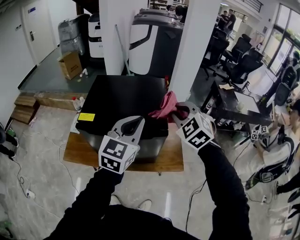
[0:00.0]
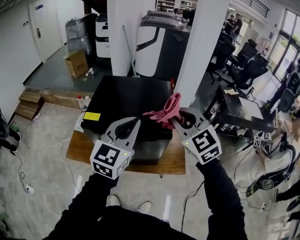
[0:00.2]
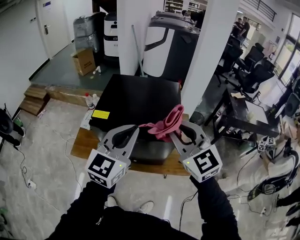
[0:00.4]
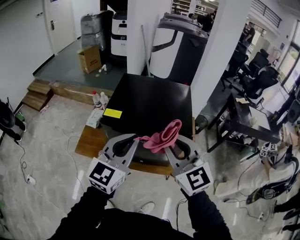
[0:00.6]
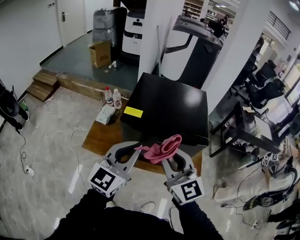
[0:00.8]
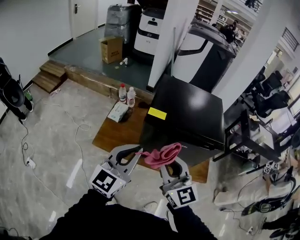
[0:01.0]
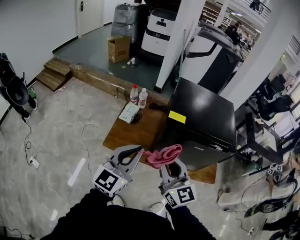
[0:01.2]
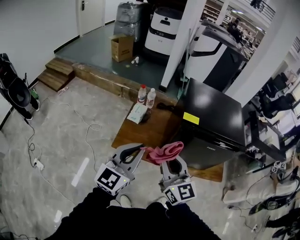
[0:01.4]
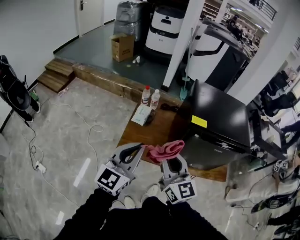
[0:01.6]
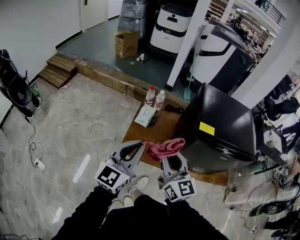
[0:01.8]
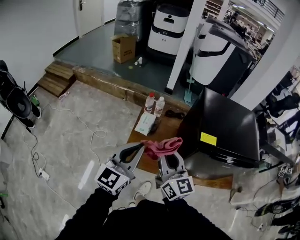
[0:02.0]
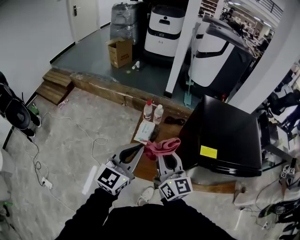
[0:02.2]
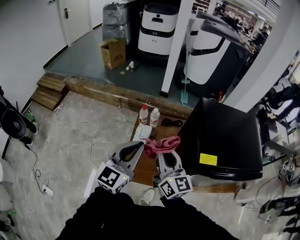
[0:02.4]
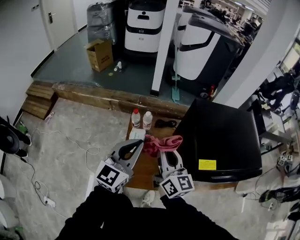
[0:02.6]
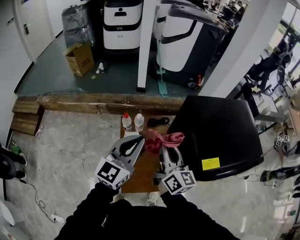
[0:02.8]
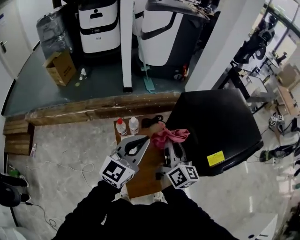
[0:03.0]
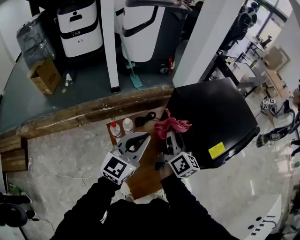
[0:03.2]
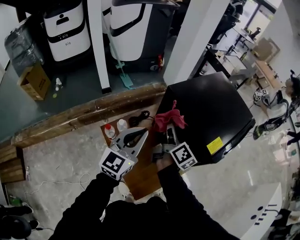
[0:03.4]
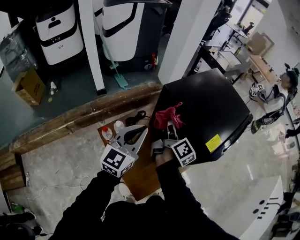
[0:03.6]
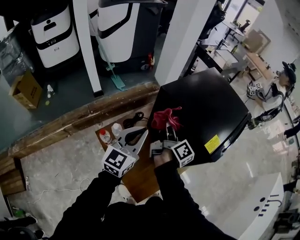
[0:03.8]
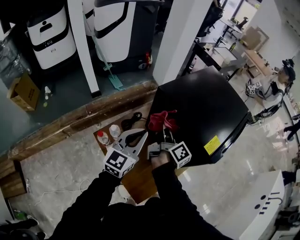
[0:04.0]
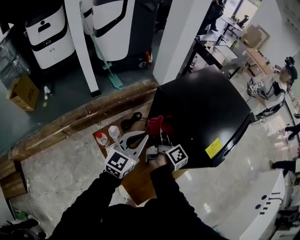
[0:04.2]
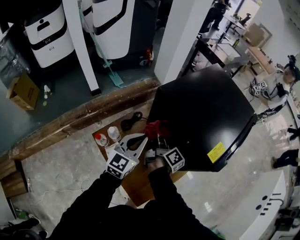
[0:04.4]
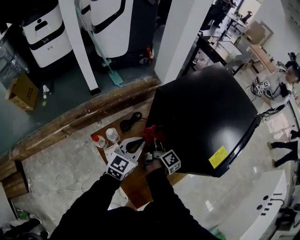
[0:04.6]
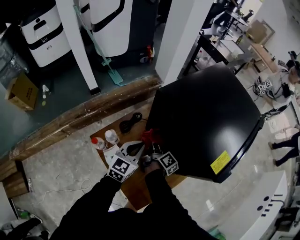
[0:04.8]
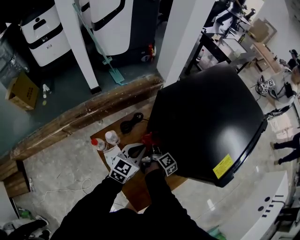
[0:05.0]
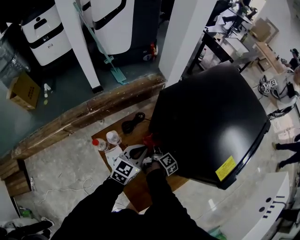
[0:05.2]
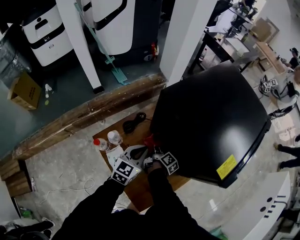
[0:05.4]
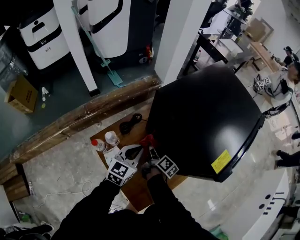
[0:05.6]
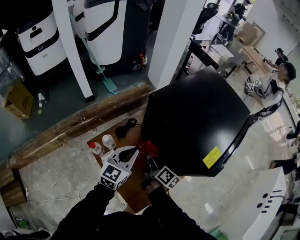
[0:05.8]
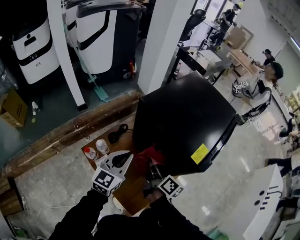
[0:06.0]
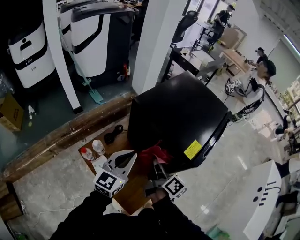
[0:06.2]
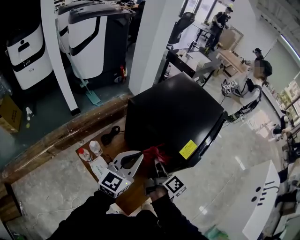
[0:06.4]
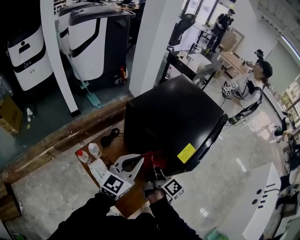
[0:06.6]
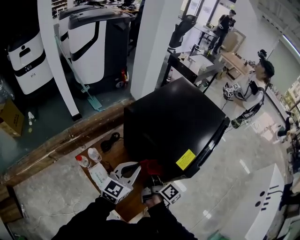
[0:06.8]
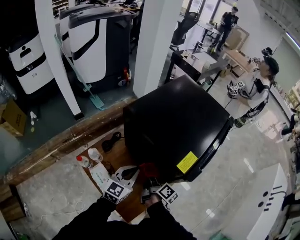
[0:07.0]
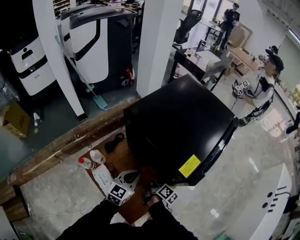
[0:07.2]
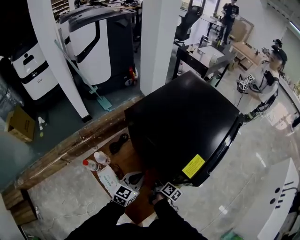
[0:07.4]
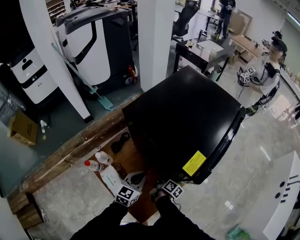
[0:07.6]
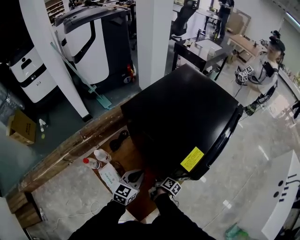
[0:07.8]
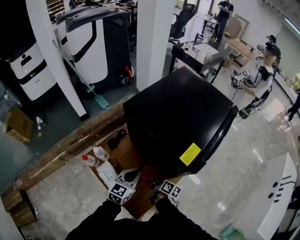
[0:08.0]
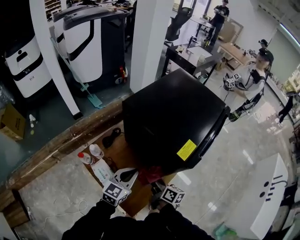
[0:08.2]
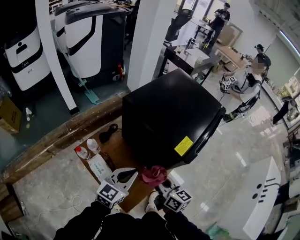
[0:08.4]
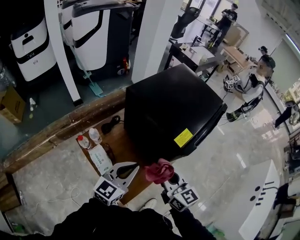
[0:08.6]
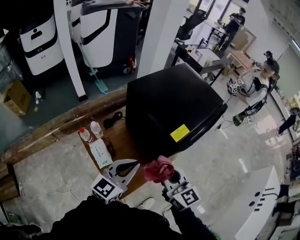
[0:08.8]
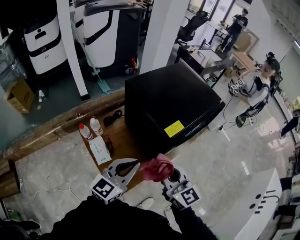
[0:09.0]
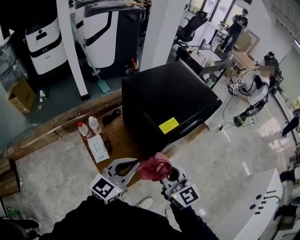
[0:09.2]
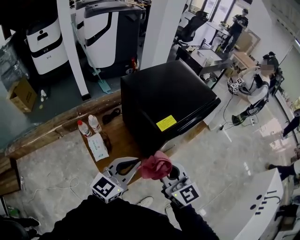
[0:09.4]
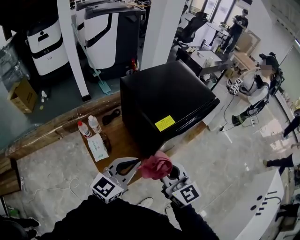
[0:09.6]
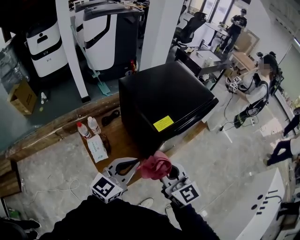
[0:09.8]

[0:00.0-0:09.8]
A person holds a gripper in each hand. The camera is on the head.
0:00.0 to 0:01.4: Both grippers are carried to the left, approximately 50 cm. The right gripper points its fingers some 30 degrees further upward.
0:01.4 to 0:02.8: Both grippers travel together forward, about 35 cm. The left gripper swivels approximately 20 degrees; the right gripper swivels some 40 degrees.
0:02.8 to 0:04.2: The left gripper shifts by about 15 cm, and changes its angle by roughly 30 degrees. Meanwhile the right gripper ends up about 20 cm from where it was, and turns by approximately 60 degrees.
0:04.2 to 0:05.6: Both grippers move downward, about 15 cm. The right gripper rotates some 20 degrees.
0:05.6 to 0:07.0: The left gripper is displaced to the right by some 10 cm, and moves roughly 20 cm upward and comes back, while the right gripper travels to the right, upward and backward by roughly 20 cm.
0:07.0 to 0:08.4: The right gripper is displaced upward and backward by approximately 15 cm, and rotates around the line of its fingers by about 40 degrees, counterclockwise from behind; the left gripper is displaced backward and upward by some 10 cm.
0:08.4 to 0:09.8: The left gripper moves to the right, upward and backward, roughly 20 cm. The right gripper goes approximately 20 cm upward, to the right and backward, and swivels some 30 degrees.

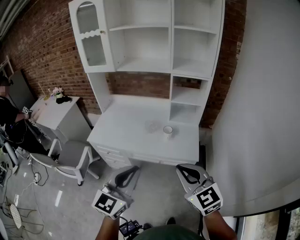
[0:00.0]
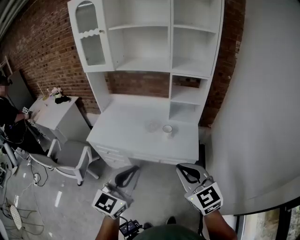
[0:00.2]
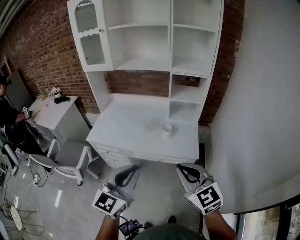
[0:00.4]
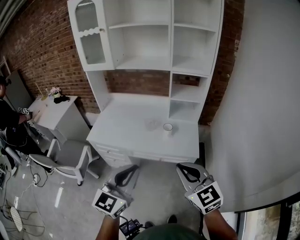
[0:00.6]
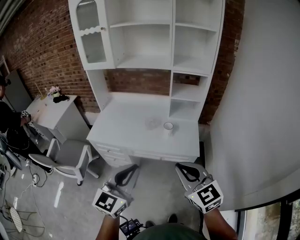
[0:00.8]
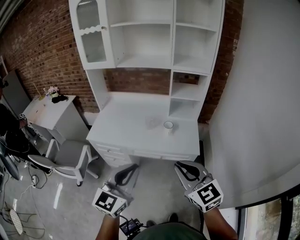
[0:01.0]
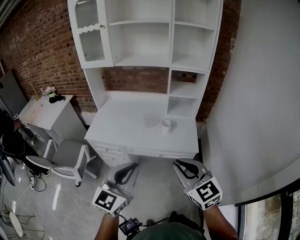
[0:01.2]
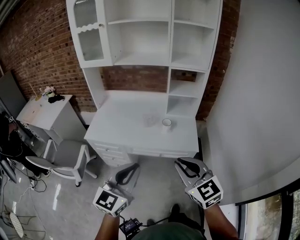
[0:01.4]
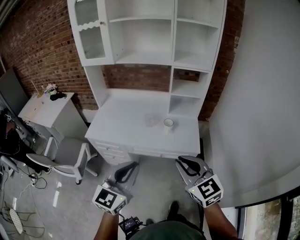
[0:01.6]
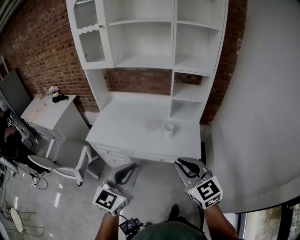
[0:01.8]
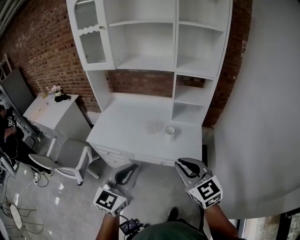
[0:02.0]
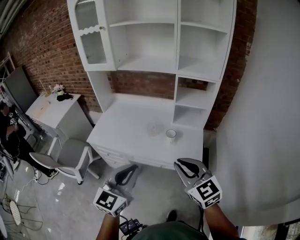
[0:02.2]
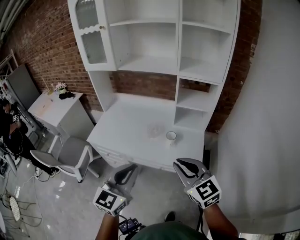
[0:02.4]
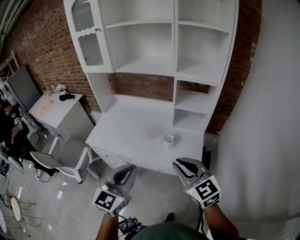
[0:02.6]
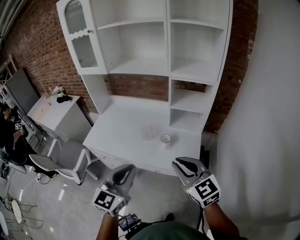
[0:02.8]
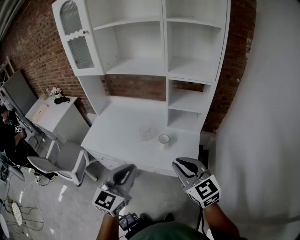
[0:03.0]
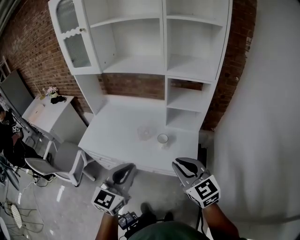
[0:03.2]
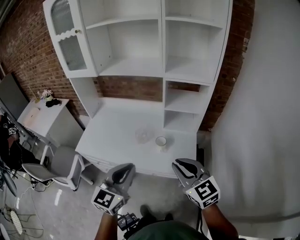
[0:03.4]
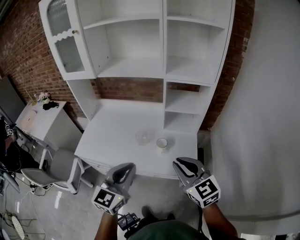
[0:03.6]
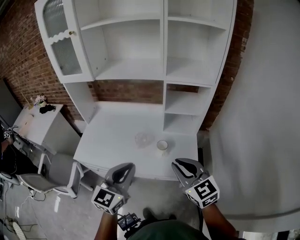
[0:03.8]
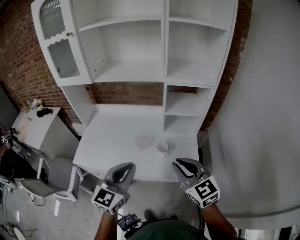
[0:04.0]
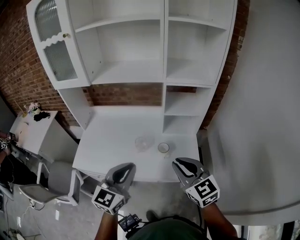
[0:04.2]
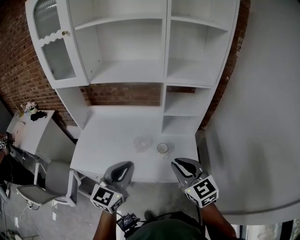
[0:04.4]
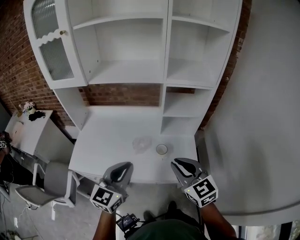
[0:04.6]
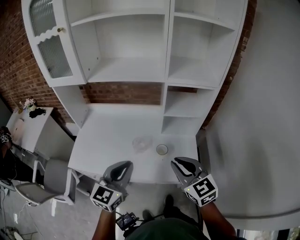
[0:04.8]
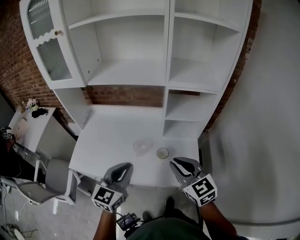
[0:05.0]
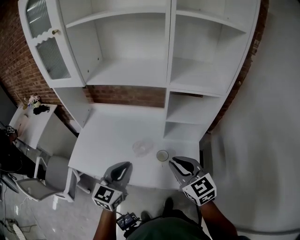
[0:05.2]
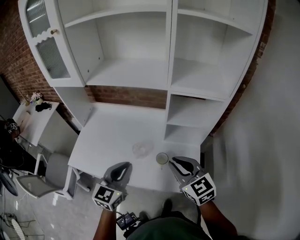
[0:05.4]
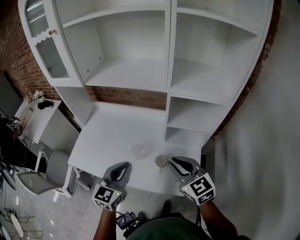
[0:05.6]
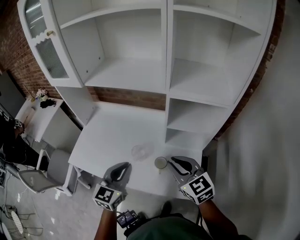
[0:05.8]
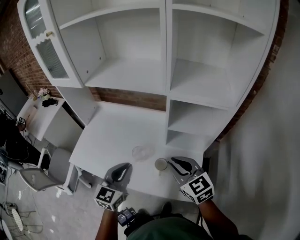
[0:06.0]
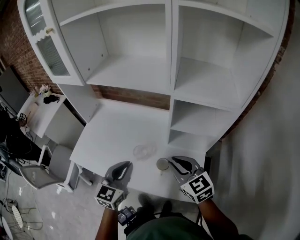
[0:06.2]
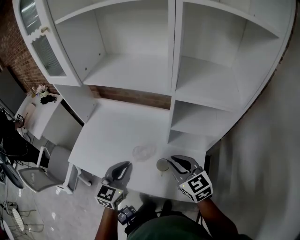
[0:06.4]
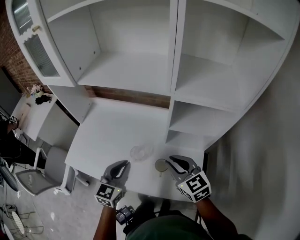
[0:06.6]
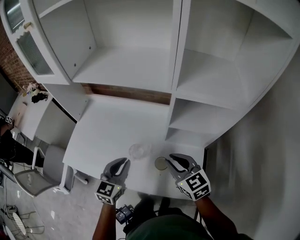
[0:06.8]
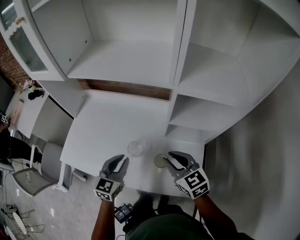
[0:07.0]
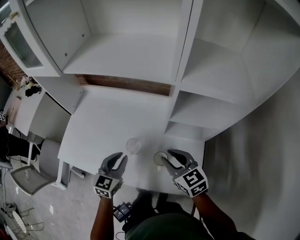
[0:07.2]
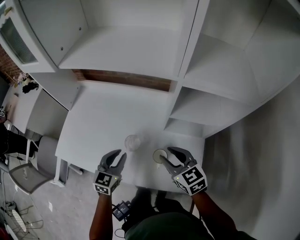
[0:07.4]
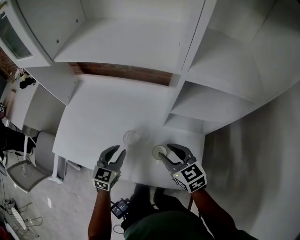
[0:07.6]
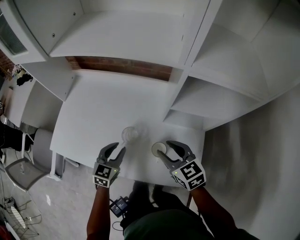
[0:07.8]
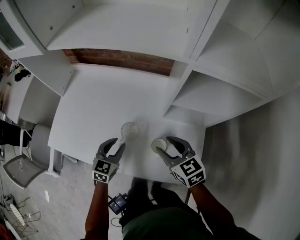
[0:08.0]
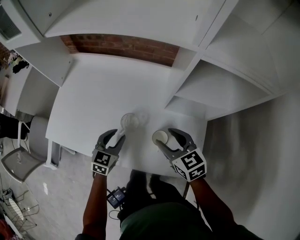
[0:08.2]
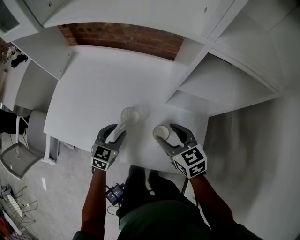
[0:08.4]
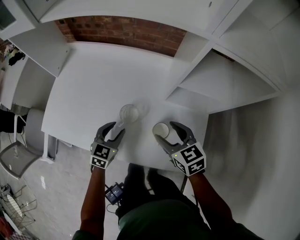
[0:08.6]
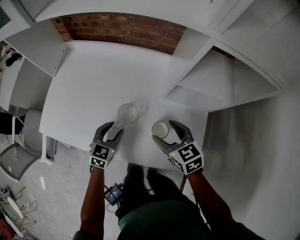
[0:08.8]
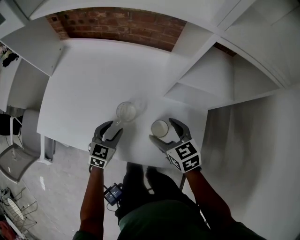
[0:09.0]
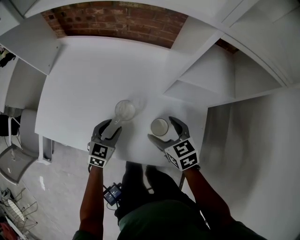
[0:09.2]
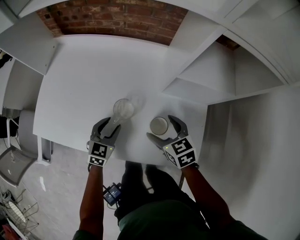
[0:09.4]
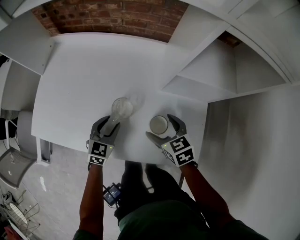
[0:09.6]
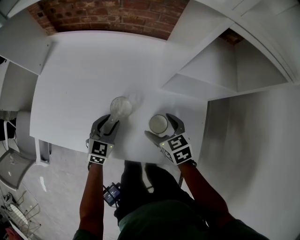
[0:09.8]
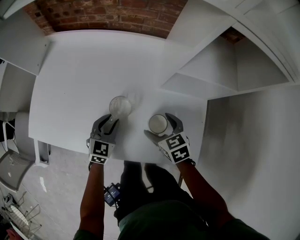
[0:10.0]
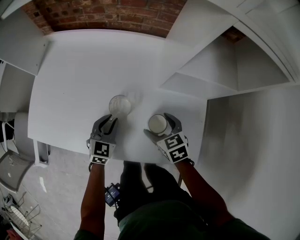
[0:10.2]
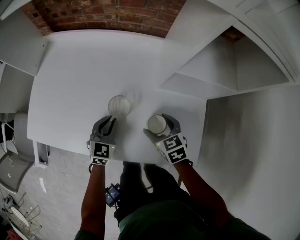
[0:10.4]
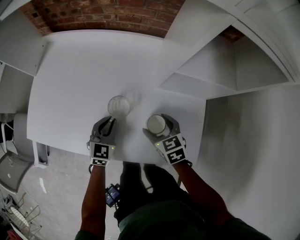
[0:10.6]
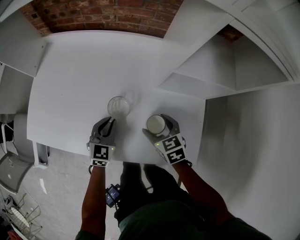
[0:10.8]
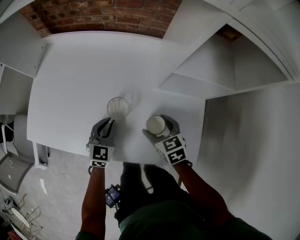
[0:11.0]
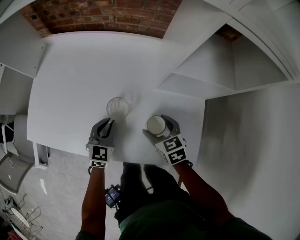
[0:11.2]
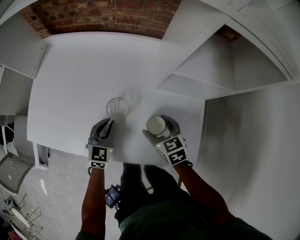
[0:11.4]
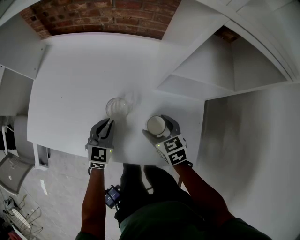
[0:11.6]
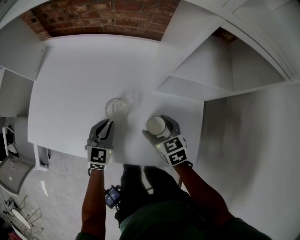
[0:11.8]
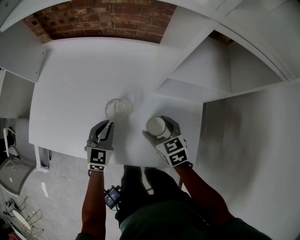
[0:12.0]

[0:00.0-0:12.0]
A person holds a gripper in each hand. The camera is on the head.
0:00.0 to 0:01.6: The left gripper heads to the left, covering roughly 5 cm.
0:01.6 to 0:03.0: The grippers both shift forward and to the right by some 20 cm.
0:03.0 to 0:04.4: Both grippers move forward and to the left, approximately 15 cm.
0:04.4 to 0:06.0: The left gripper moves forward, downward and to the right, approximately 15 cm. Meanwhile the right gripper heads forward and to the right, covering roughly 20 cm.
0:06.0 to 0:07.6: Both grippers move downward and forward, about 20 cm.
0:07.6 to 0:09.0: The grippers both shift downward by about 10 cm. The left gripper opens, while the right gripper opens.
0:09.0 to 0:10.4: The left gripper closes up, while the right gripper shifts roughly 10 cm downward.
0:10.4 to 0:12.0: The grippers make only small movements.

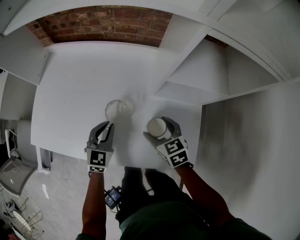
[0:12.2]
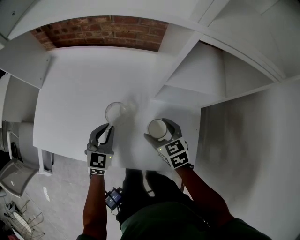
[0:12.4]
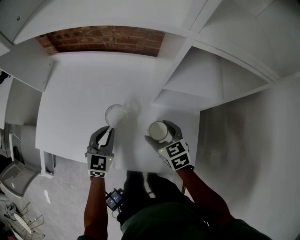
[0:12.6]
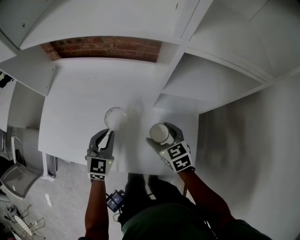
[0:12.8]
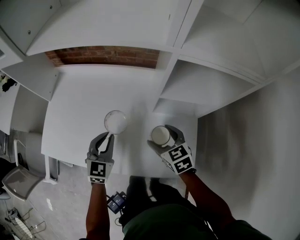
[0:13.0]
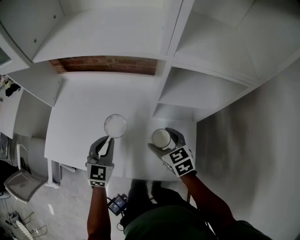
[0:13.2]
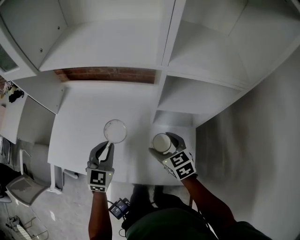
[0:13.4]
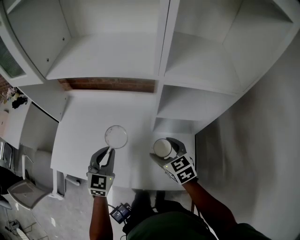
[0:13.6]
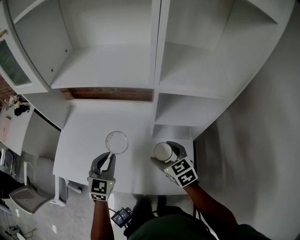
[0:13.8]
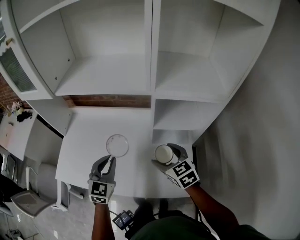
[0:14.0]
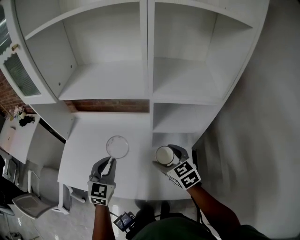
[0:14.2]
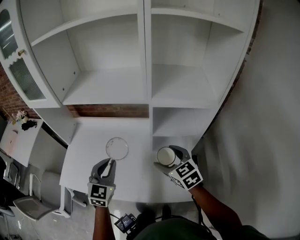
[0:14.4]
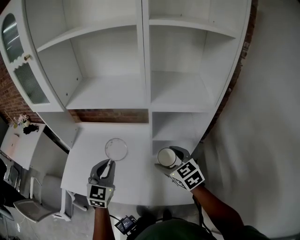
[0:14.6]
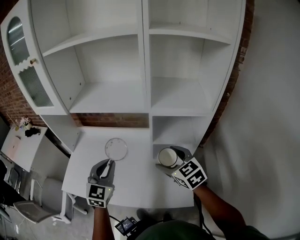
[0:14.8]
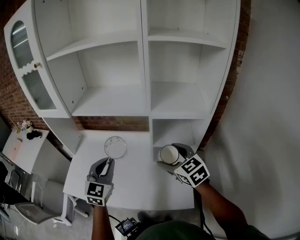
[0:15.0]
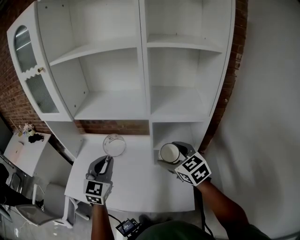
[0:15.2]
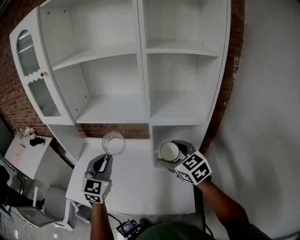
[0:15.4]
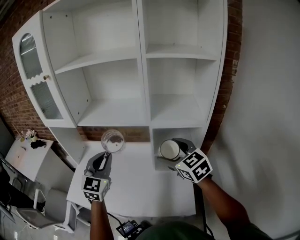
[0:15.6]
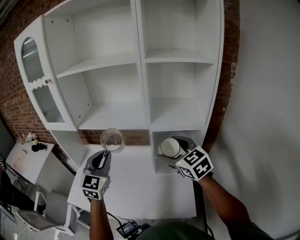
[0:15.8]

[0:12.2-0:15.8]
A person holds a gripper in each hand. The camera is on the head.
0:12.2 to 0:14.0: Both grippers move upward, roughly 25 cm.
0:14.0 to 0:15.8: Both grippers move upward, some 25 cm.
